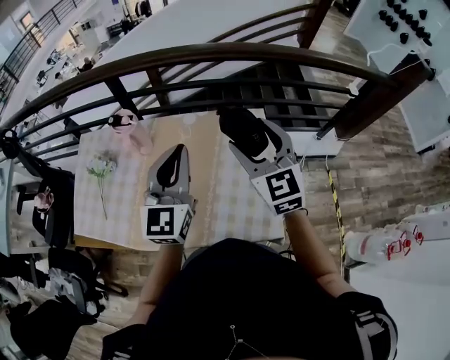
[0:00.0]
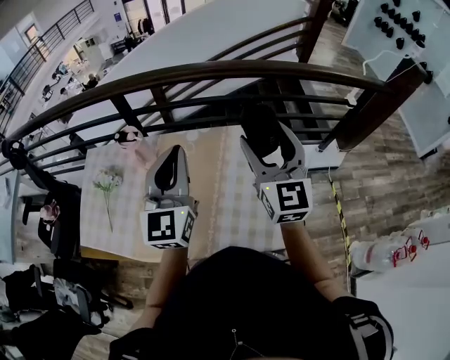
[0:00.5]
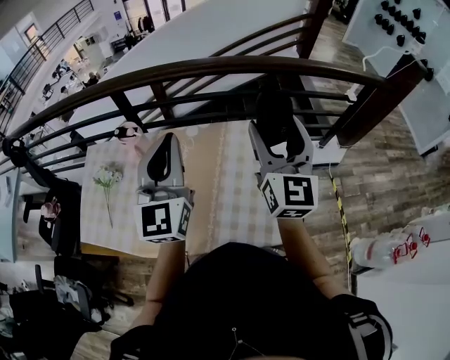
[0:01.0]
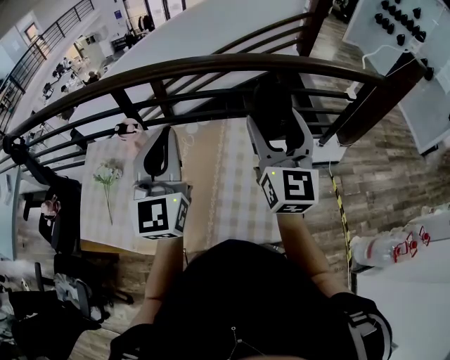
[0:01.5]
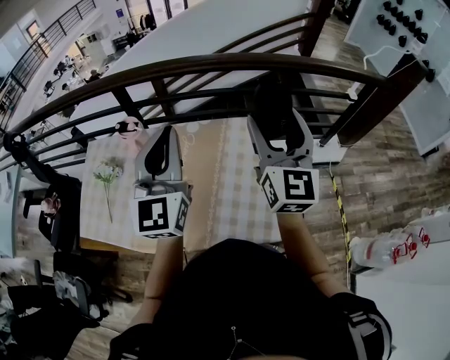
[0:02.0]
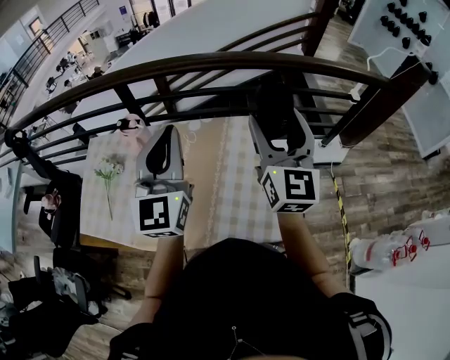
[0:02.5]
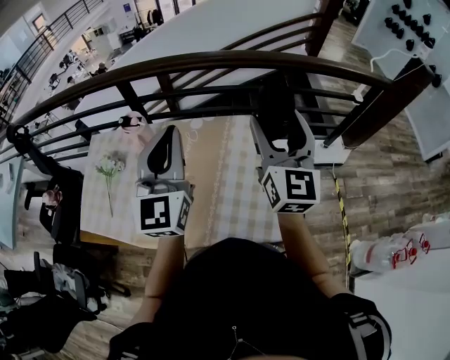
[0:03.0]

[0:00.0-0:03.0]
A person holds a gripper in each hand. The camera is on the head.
0:00.0 to 0:01.5: The left gripper goes some 10 cm upward; the right gripper moves upward and to the right, about 10 cm, and turns by about 30 degrees.
0:01.5 to 0:03.0: The two grippers keep their place.

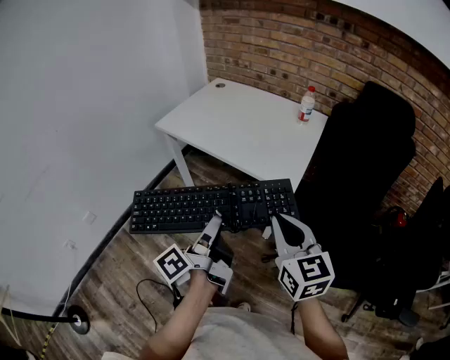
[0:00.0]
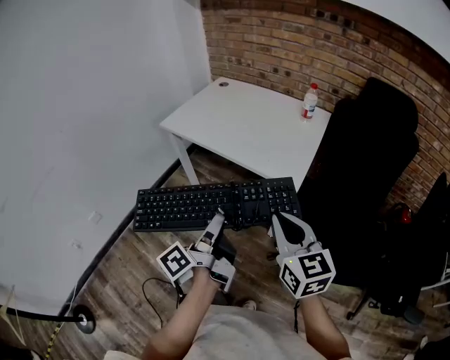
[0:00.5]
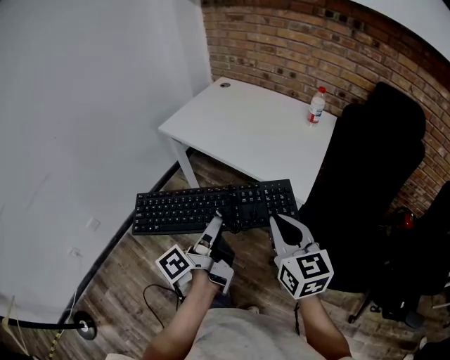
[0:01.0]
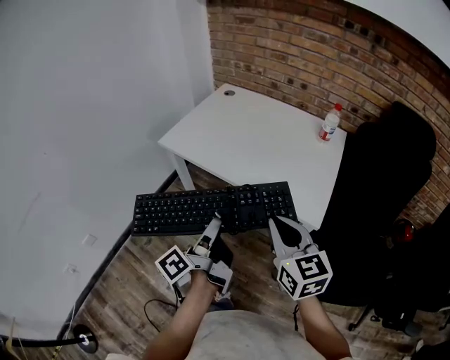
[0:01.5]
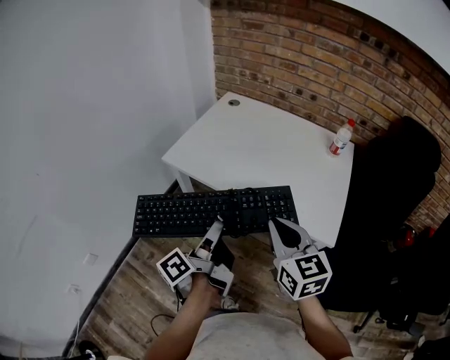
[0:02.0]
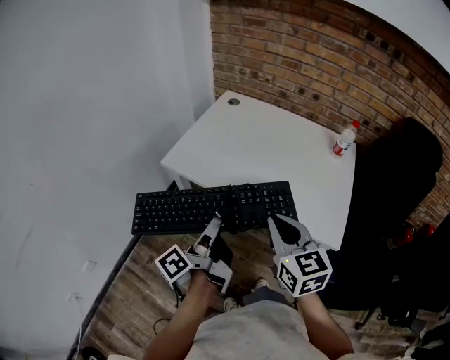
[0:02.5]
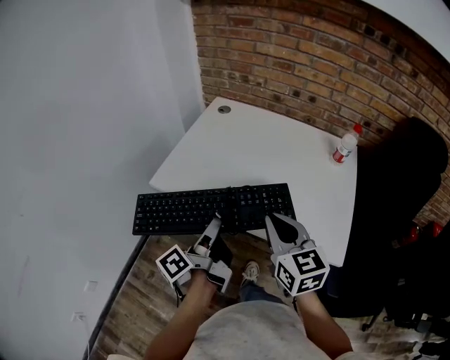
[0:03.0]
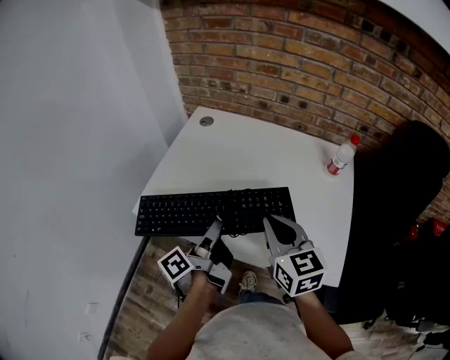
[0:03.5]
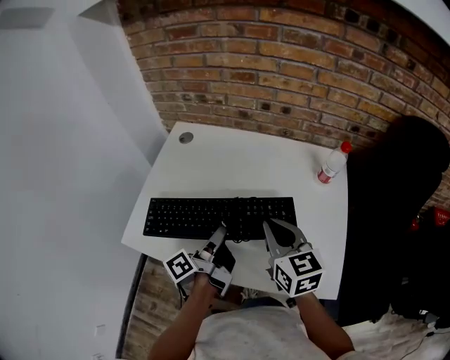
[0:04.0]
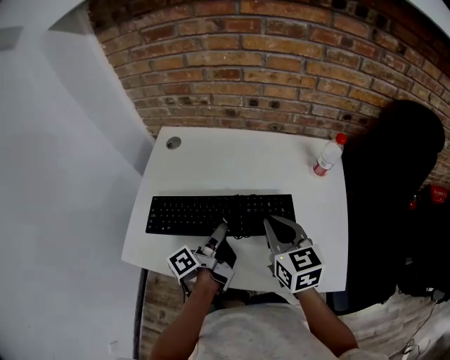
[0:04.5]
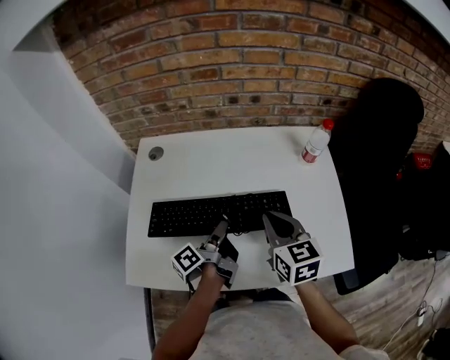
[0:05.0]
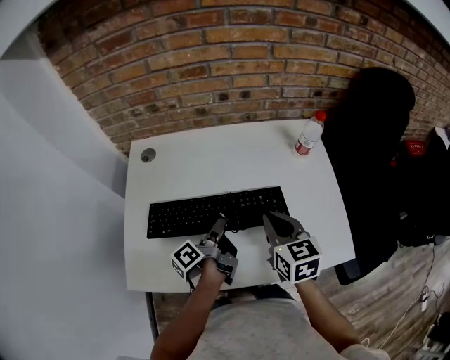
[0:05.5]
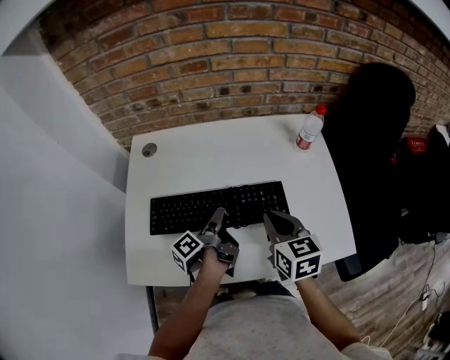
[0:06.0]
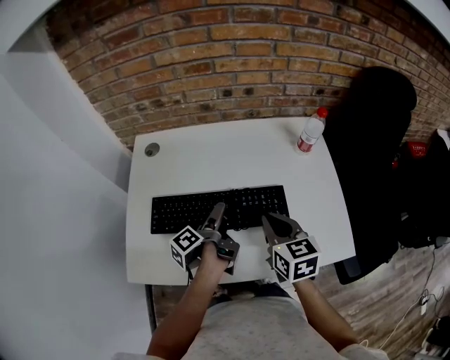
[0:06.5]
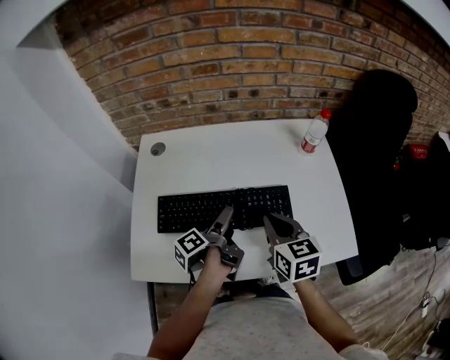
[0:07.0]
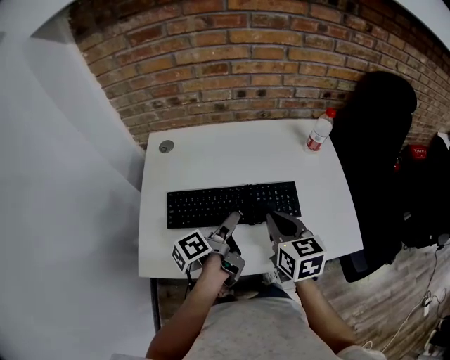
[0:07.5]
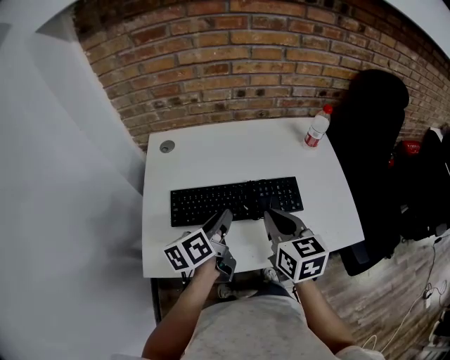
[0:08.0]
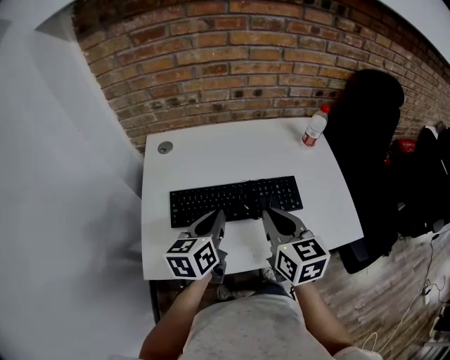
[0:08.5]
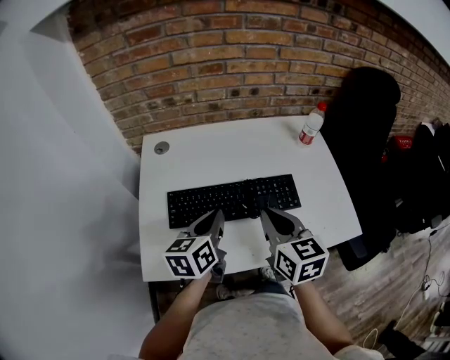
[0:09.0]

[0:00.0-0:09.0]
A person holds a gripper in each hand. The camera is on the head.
0:00.0 to 0:02.0: The right gripper shifts by some 30 cm.
0:02.0 to 0:04.5: The right gripper ends up roughly 35 cm from where it was.
0:04.5 to 0:07.0: The right gripper moves approximately 5 cm.
0:07.0 to 0:09.0: The right gripper shifts by roughly 10 cm.

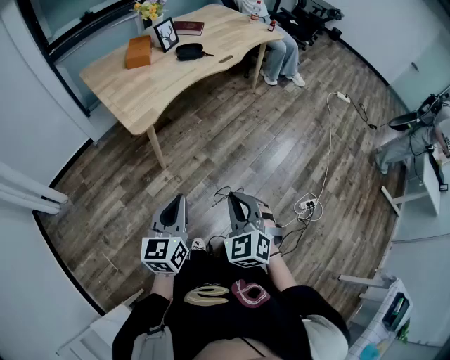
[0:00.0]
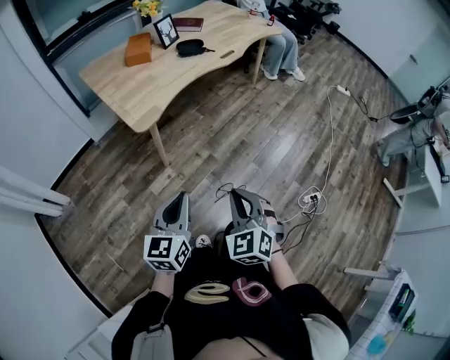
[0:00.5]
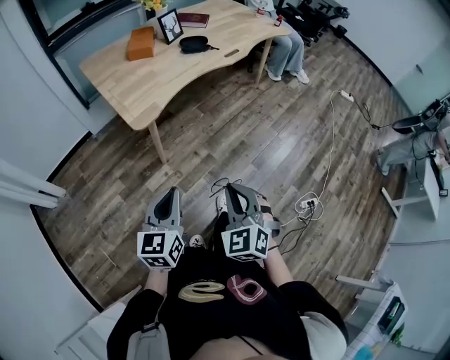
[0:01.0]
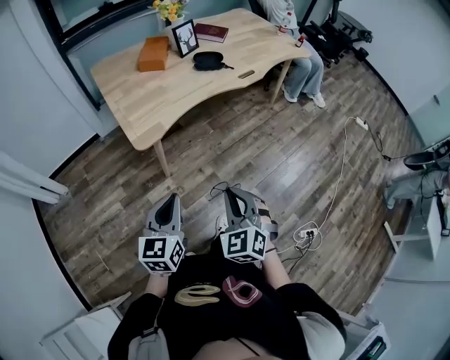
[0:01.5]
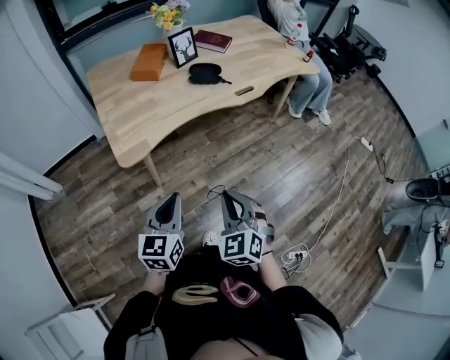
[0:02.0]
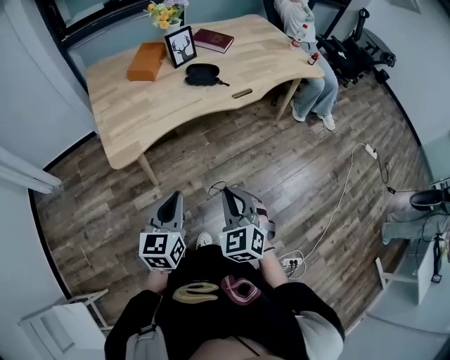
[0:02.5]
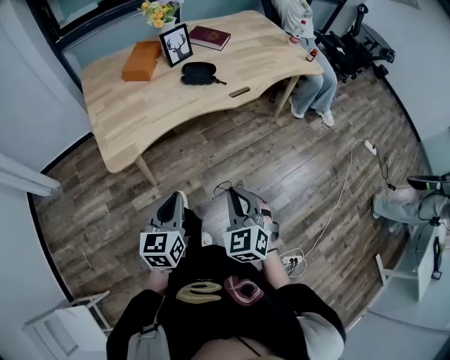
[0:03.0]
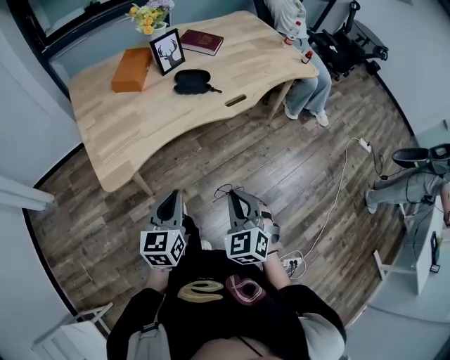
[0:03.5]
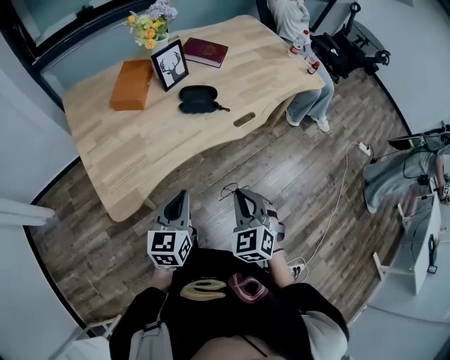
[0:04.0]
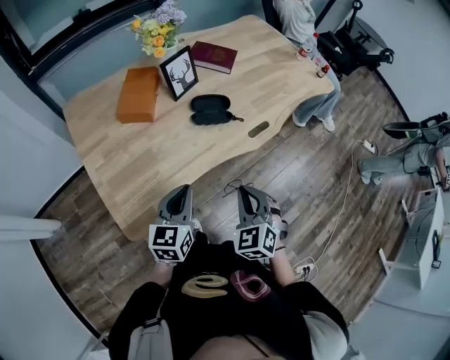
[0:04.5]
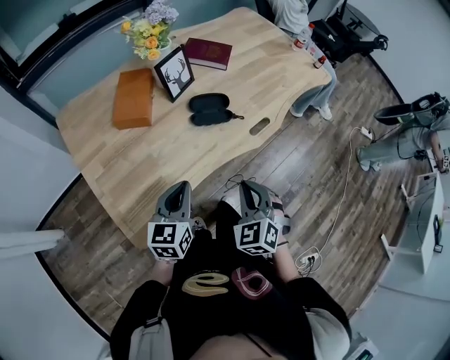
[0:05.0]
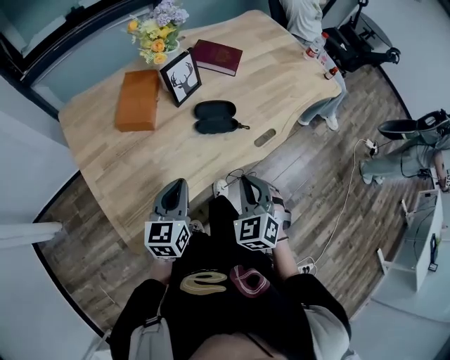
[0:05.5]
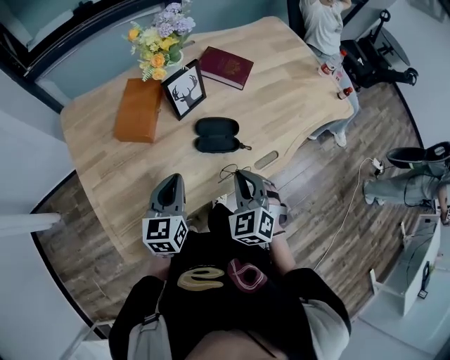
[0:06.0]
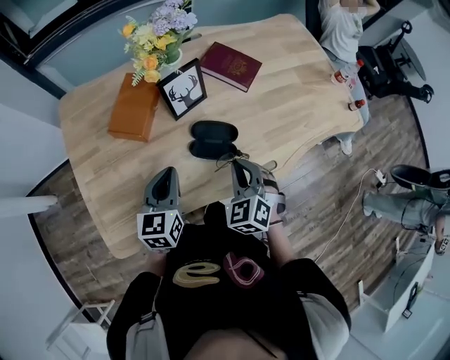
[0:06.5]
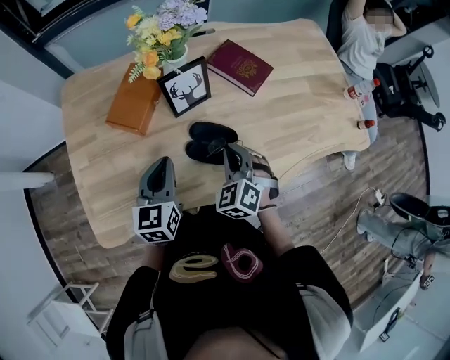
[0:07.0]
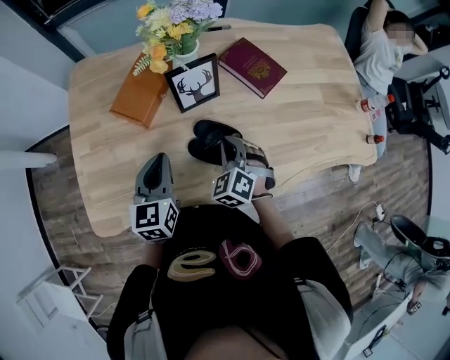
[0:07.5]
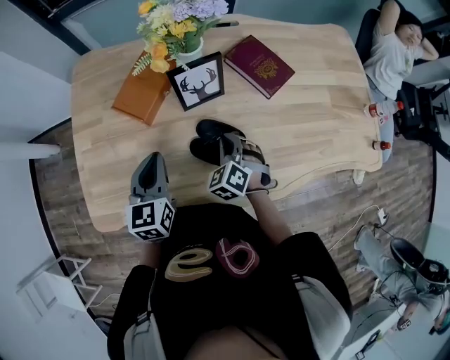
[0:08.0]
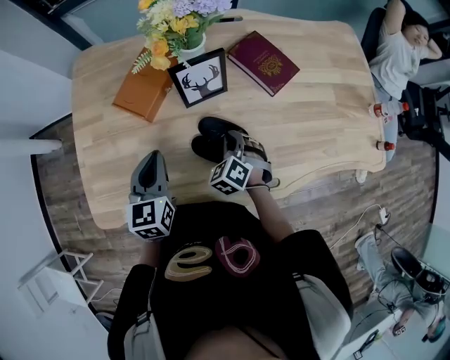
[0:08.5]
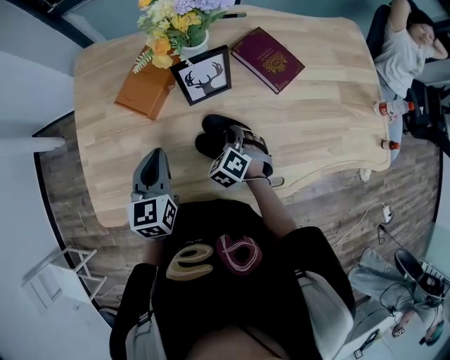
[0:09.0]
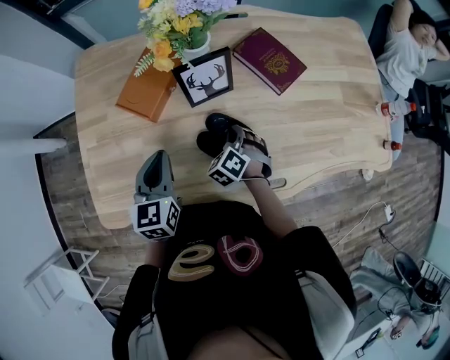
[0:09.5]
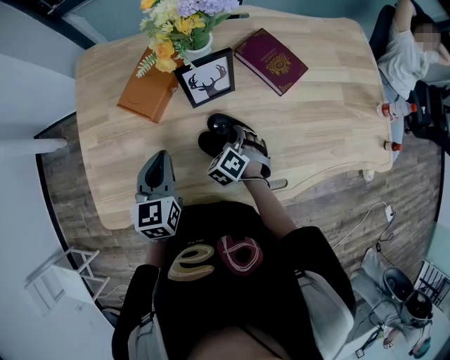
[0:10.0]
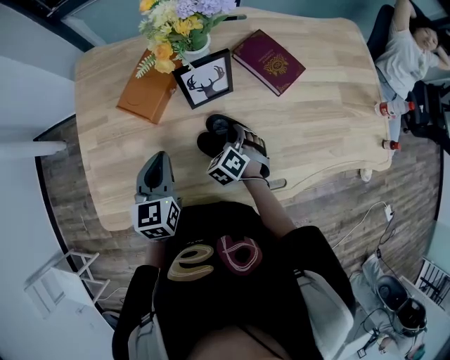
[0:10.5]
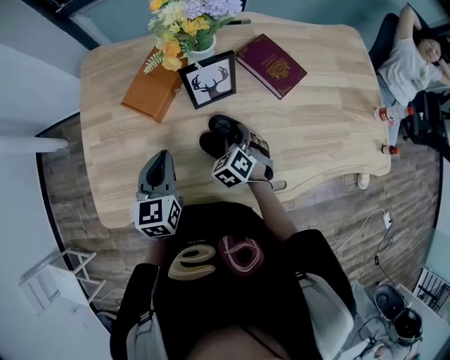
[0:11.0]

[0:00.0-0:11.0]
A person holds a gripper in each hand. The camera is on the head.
0:00.0 to 0:02.0: The grippers both shift forward by some 25 cm.
0:02.0 to 0:03.5: The left gripper moves forward, about 15 cm. Meanwhile the right gripper is displaced forward and to the right by roughly 15 cm.
0:03.5 to 0:05.5: The grippers both shift forward and to the left by approximately 30 cm.
0:05.5 to 0:07.5: The left gripper shifts by roughly 15 cm, and turns by roughly 30 degrees, while the right gripper moves about 30 cm, and turns by approximately 30 degrees.
0:07.5 to 0:09.0: The right gripper travels downward by some 10 cm.
0:09.0 to 0:11.0: The right gripper opens.

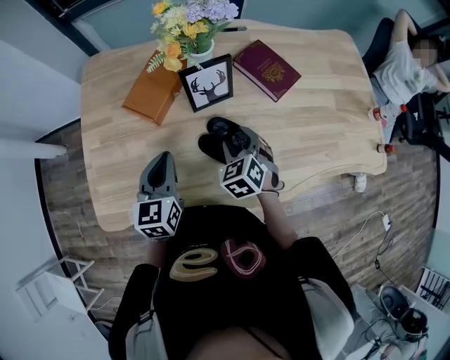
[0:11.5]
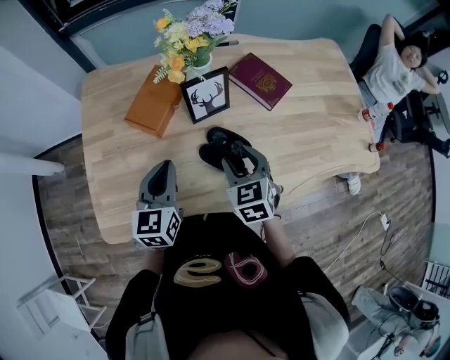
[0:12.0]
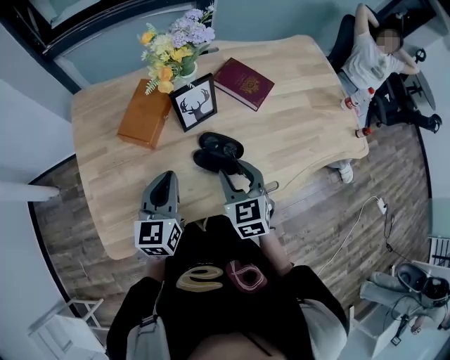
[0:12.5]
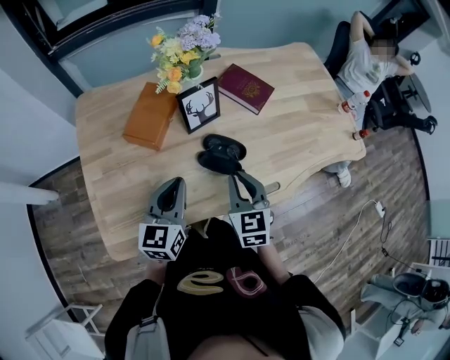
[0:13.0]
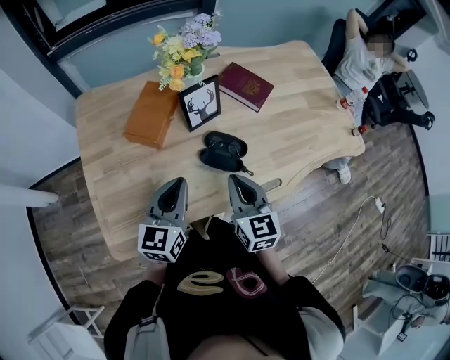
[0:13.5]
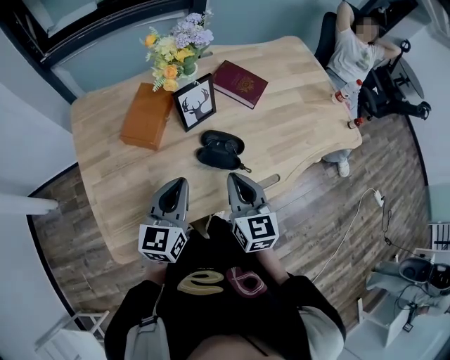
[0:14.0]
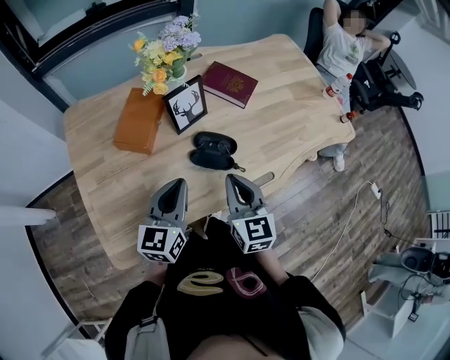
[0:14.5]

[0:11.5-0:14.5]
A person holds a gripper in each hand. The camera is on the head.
0:11.5 to 0:13.0: The right gripper heads backward and upward, covering roughly 15 cm, turns by roughly 30 degrees, and closes up. The left gripper ends up roughly 5 cm from where it was, and rotates approximately 20 degrees.
0:13.0 to 0:14.5: The grippers stay close to where they were, moving slightly.
